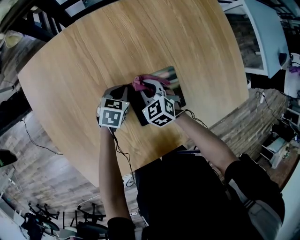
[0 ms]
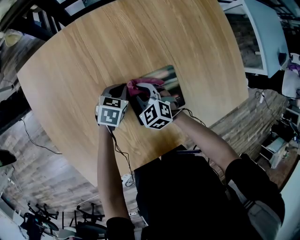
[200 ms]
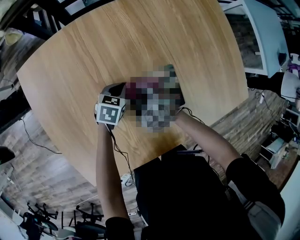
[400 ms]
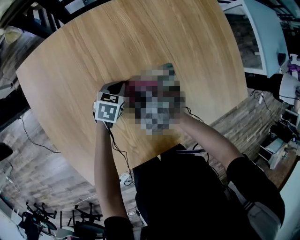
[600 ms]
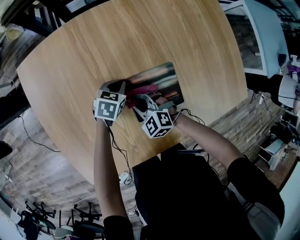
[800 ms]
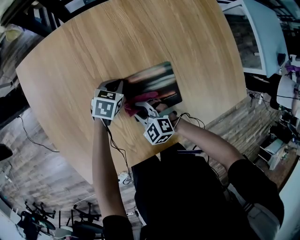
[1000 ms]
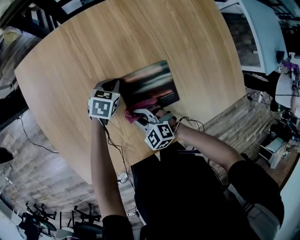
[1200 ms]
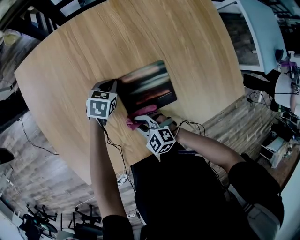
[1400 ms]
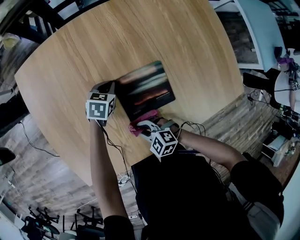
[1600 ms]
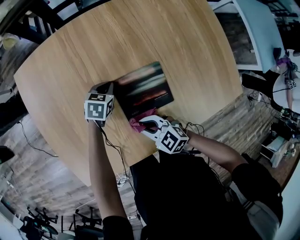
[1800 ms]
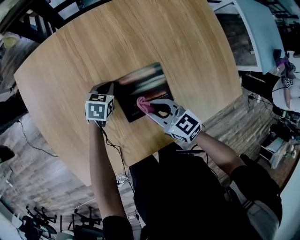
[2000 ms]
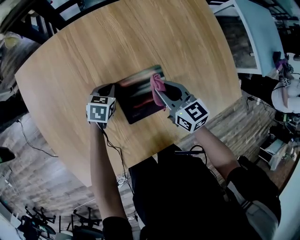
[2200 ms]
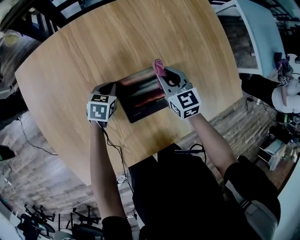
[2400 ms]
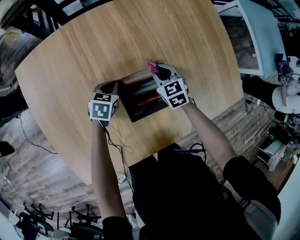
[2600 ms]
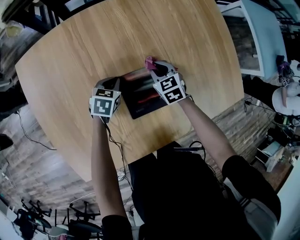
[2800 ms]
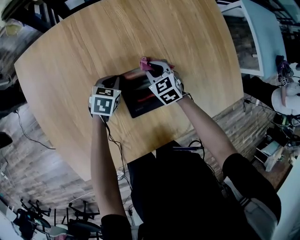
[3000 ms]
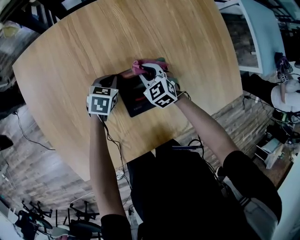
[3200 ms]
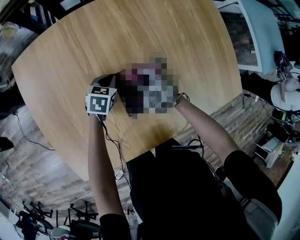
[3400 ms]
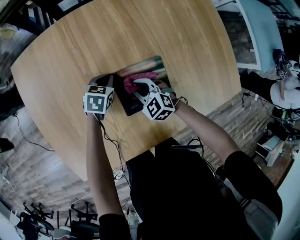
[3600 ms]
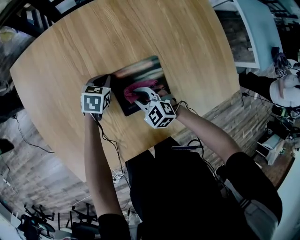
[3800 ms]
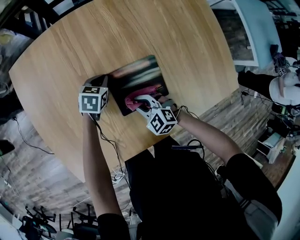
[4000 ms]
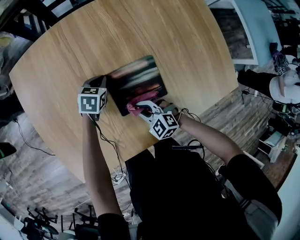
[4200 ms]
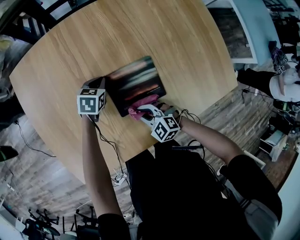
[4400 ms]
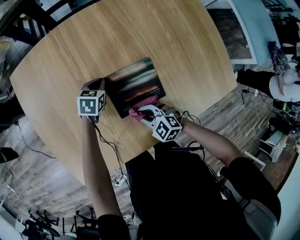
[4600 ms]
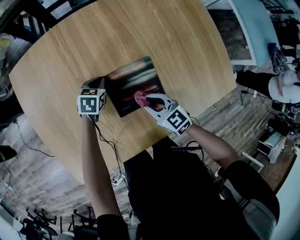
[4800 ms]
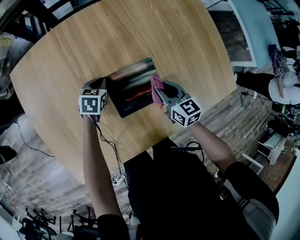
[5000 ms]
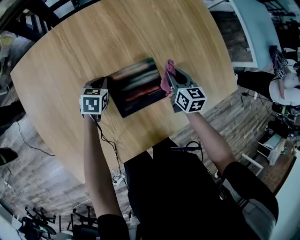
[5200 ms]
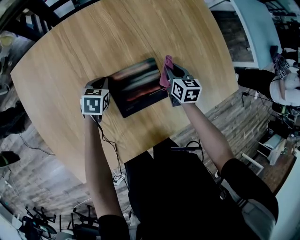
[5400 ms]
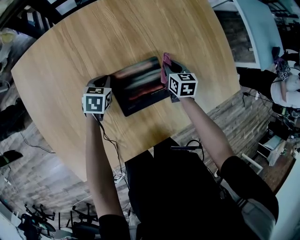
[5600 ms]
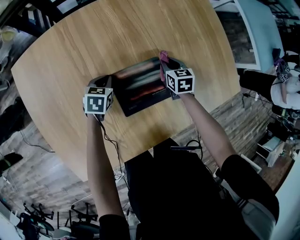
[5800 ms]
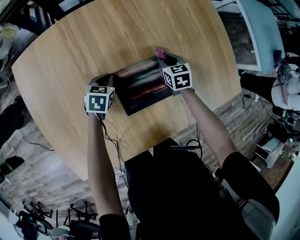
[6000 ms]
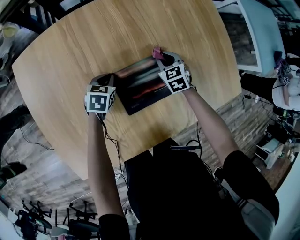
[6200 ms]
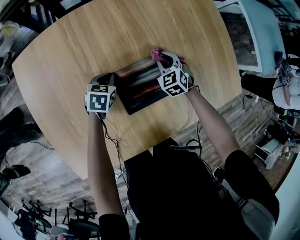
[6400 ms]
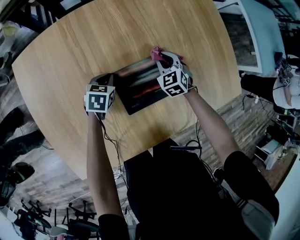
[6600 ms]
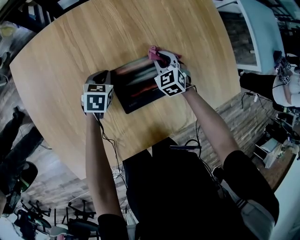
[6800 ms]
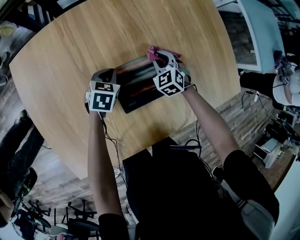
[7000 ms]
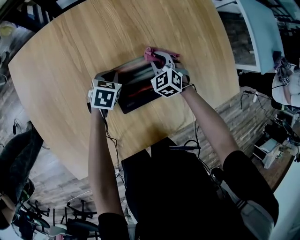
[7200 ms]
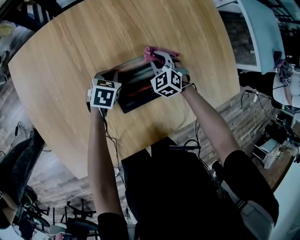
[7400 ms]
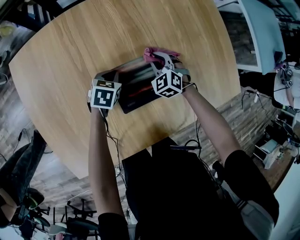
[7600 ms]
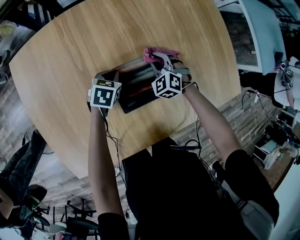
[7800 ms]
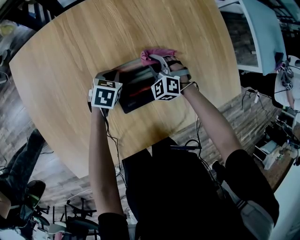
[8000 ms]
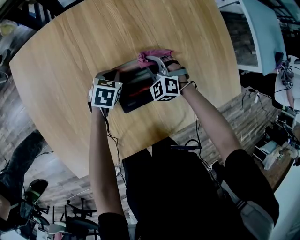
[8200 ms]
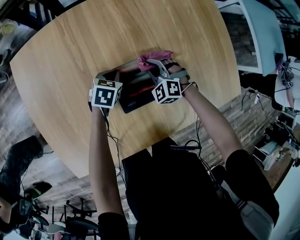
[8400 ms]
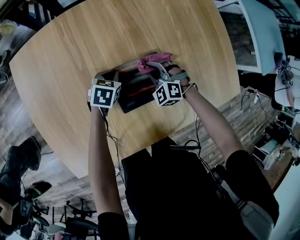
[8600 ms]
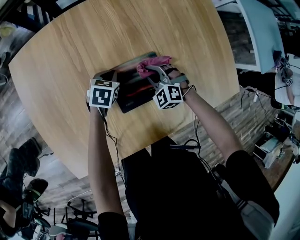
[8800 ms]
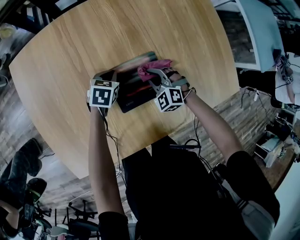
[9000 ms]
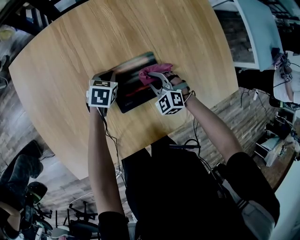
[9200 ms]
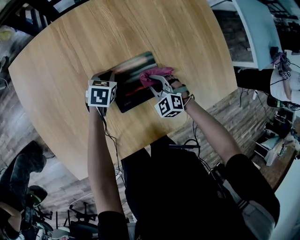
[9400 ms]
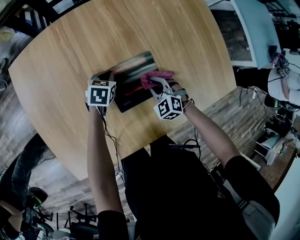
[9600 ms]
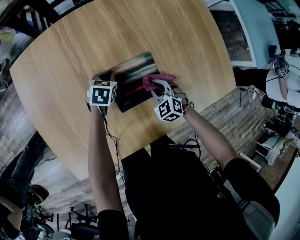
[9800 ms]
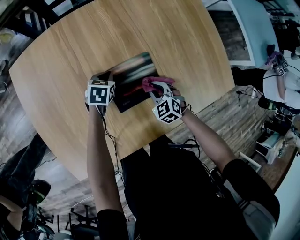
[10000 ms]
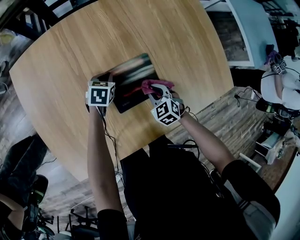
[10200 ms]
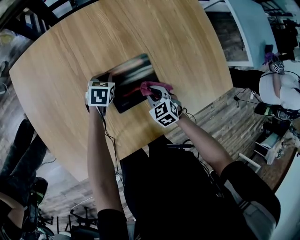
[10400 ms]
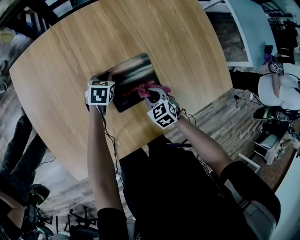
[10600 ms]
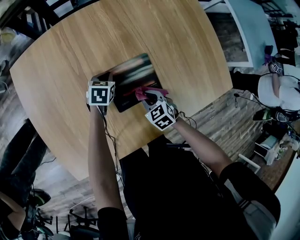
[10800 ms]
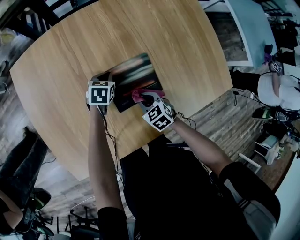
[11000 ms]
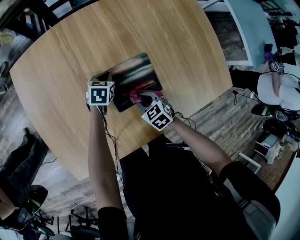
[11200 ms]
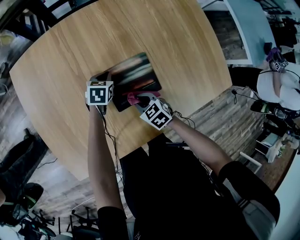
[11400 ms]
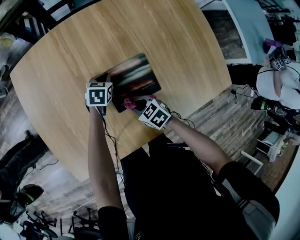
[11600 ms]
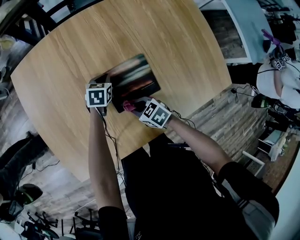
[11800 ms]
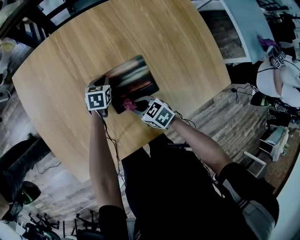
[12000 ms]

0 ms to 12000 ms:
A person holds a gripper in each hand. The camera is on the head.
0 ms to 1600 ms: The right gripper ends up about 25 cm from where it was, and rotates some 30 degrees.
1600 ms to 3000 ms: The right gripper travels upward and back again, about 15 cm each way, and swivels approximately 40 degrees.
3000 ms to 4400 ms: The right gripper travels backward by roughly 20 cm, and turns by about 30 degrees.
4400 ms to 6000 ms: The right gripper moves approximately 10 cm upward and comes back, and twists approximately 40 degrees clockwise, seen from behind.
6000 ms to 7600 ms: The right gripper rolls counterclockwise, seen from behind, by some 40 degrees.
7600 ms to 9000 ms: The right gripper is displaced backward by approximately 10 cm.
9000 ms to 10400 ms: The right gripper moves backward, approximately 5 cm, and rotates approximately 40 degrees.
10400 ms to 12000 ms: The right gripper changes place by some 10 cm, and turns by approximately 30 degrees.

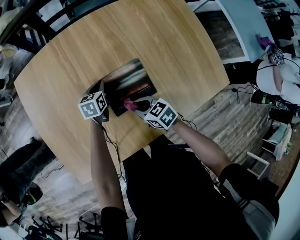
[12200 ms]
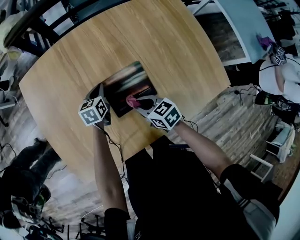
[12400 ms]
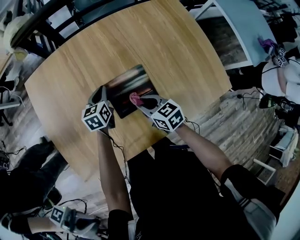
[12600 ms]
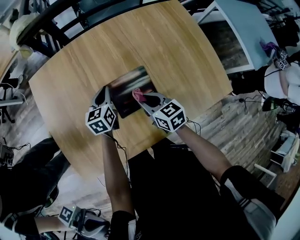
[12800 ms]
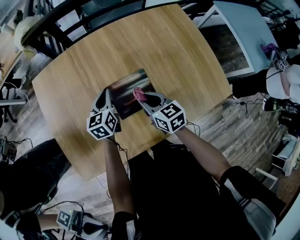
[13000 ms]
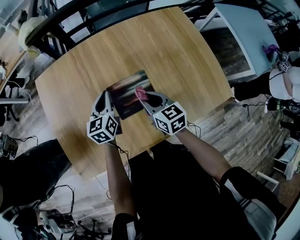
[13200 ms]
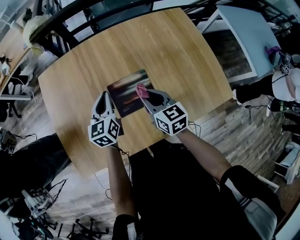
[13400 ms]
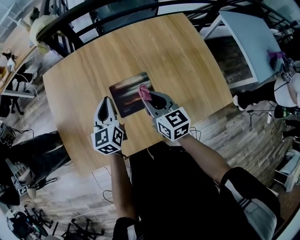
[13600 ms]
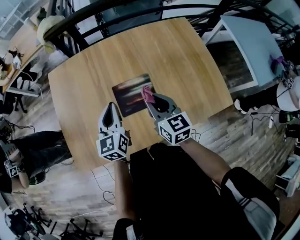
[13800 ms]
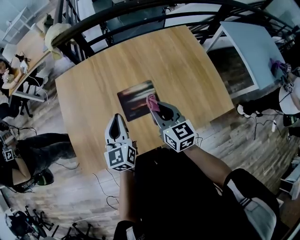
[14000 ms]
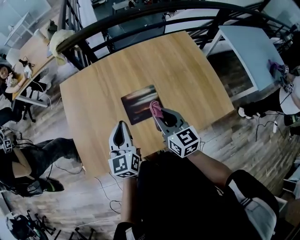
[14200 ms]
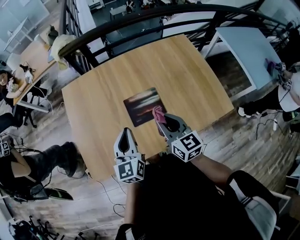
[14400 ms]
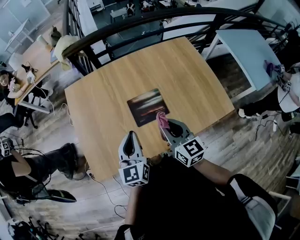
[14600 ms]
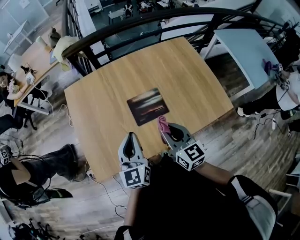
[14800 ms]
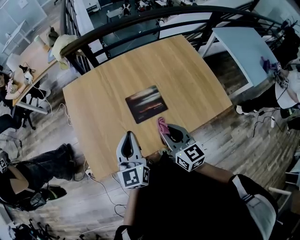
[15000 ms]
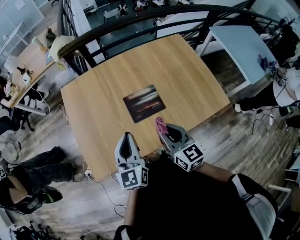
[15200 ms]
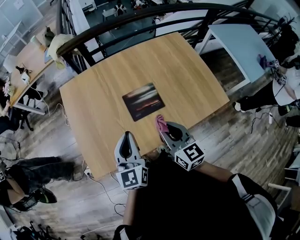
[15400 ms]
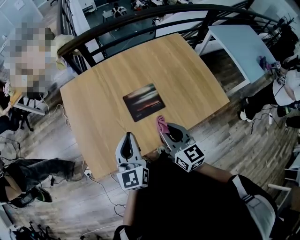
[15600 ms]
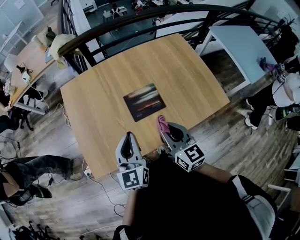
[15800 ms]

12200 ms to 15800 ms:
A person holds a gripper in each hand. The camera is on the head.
12200 ms to 14000 ms: The left gripper moves upward and backward, approximately 35 cm, and tips its fingers upward by some 30 degrees, while the right gripper moves upward, roughly 25 cm, and turns by roughly 40 degrees.
14000 ms to 15800 ms: The right gripper shifts roughly 15 cm backward, to the left and upward. The left gripper heads backward and upward, covering some 10 cm.

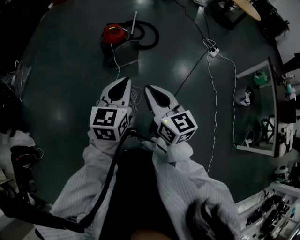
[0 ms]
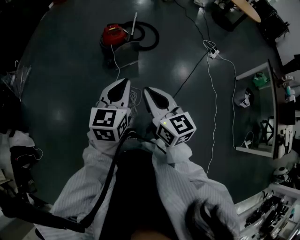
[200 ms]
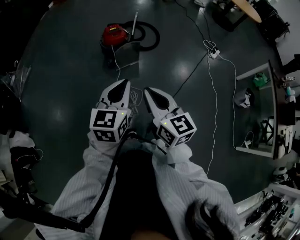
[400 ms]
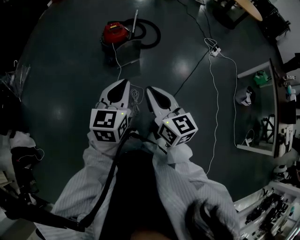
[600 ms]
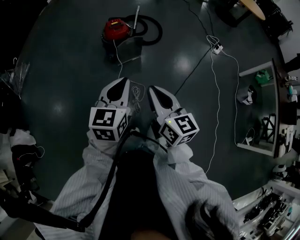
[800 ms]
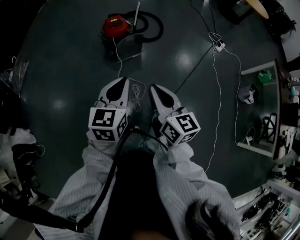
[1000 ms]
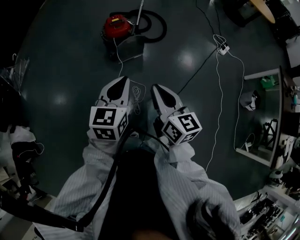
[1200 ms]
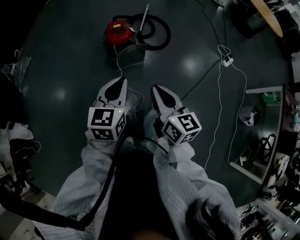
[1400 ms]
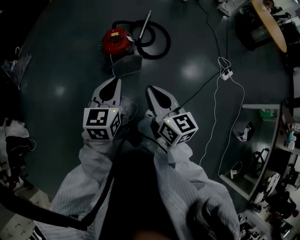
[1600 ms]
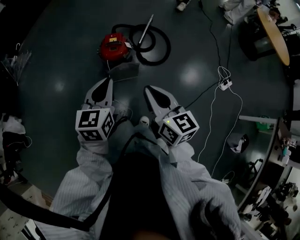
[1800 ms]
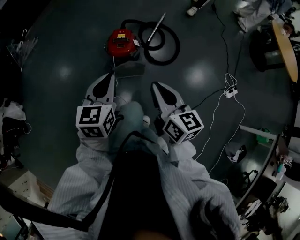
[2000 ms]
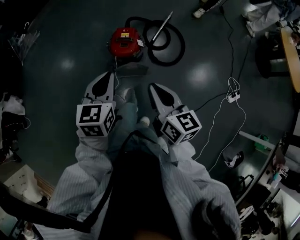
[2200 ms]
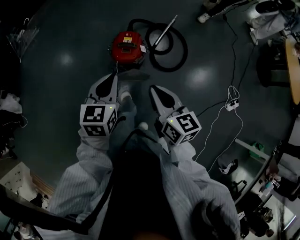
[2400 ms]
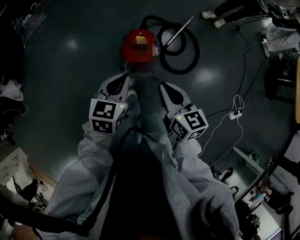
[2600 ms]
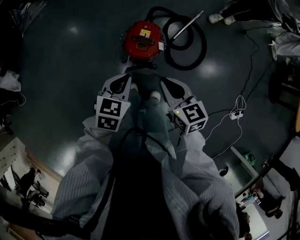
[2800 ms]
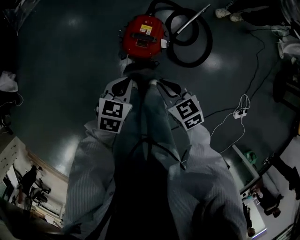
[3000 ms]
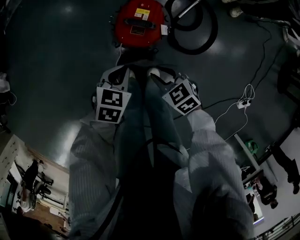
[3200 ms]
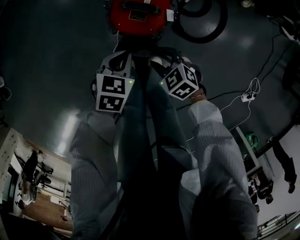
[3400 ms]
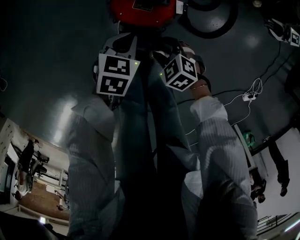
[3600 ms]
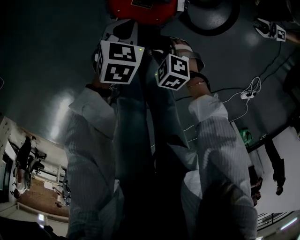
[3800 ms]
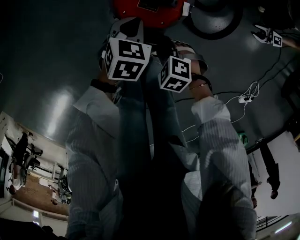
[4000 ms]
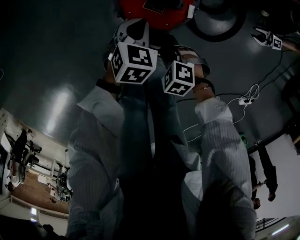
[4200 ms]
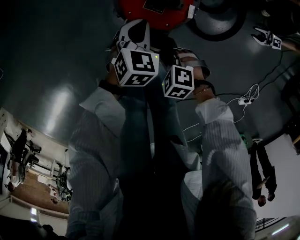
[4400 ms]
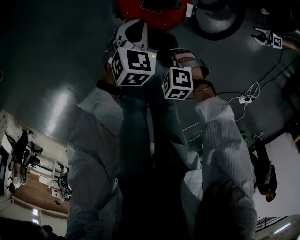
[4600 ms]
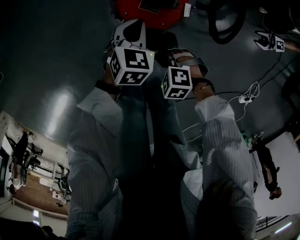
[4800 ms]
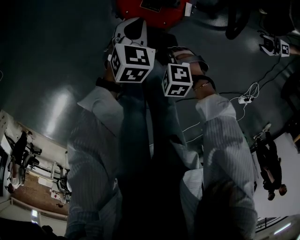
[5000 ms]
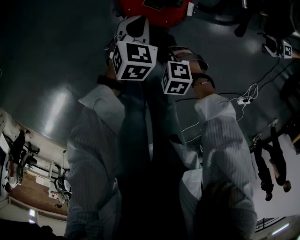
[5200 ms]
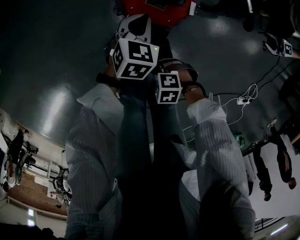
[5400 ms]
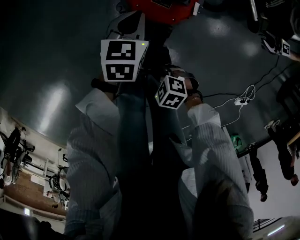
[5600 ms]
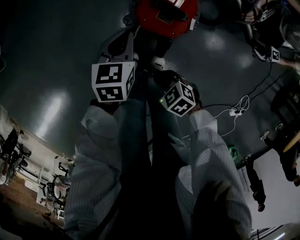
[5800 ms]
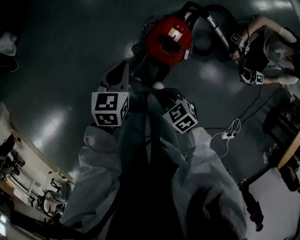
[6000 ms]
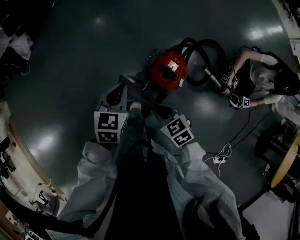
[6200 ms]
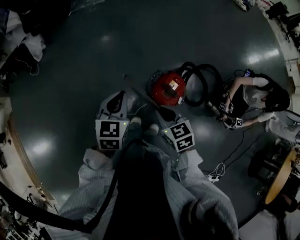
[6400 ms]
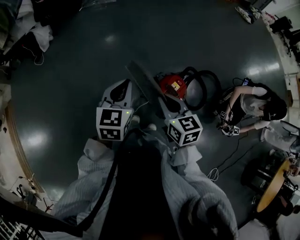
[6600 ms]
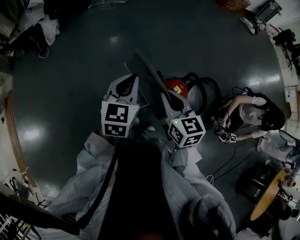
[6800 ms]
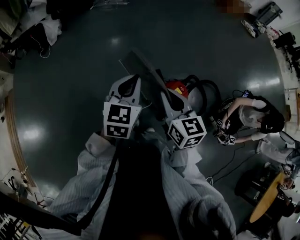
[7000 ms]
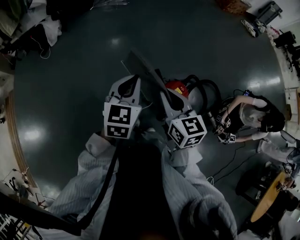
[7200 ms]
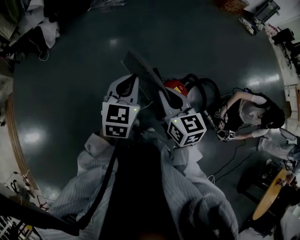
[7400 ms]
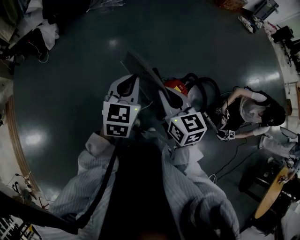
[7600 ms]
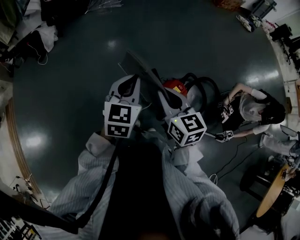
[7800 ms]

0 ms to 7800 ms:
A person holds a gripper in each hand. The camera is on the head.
0 ms to 1600 ms: Both grippers travel together forward, roughly 30 cm.
1600 ms to 3200 ms: The grippers both shift downward by approximately 40 cm. The right gripper tilts its fingers some 40 degrees downward; the left gripper angles its fingers downward, by about 30 degrees.
3200 ms to 4600 ms: Both grippers travel together downward, about 20 cm. The right gripper changes its angle by roughly 50 degrees, and opens and closes again.
4600 ms to 6200 ms: The two grippers go some 35 cm upward. The left gripper rotates about 30 degrees; the right gripper rotates about 40 degrees.
6200 ms to 7800 ms: The right gripper swings up and down, about 25 cm each way, with 2 reversals, and turns by some 30 degrees; the left gripper goes up and down, approximately 20 cm each way, reversing 2 times, and rotates approximately 20 degrees.
